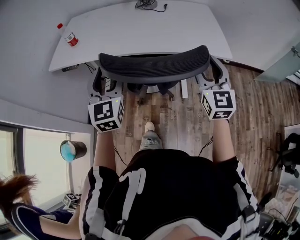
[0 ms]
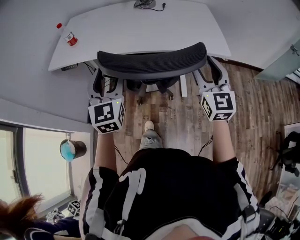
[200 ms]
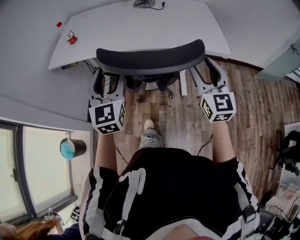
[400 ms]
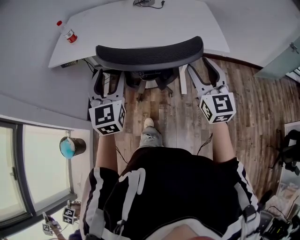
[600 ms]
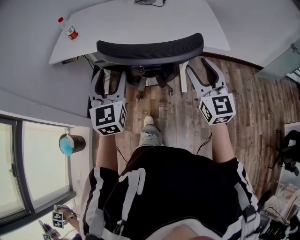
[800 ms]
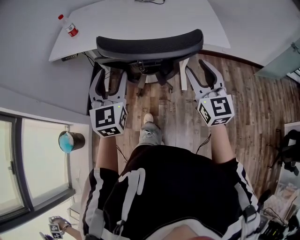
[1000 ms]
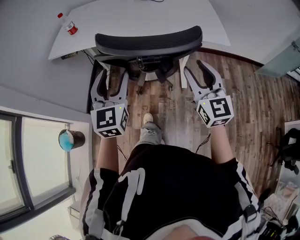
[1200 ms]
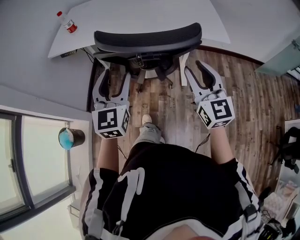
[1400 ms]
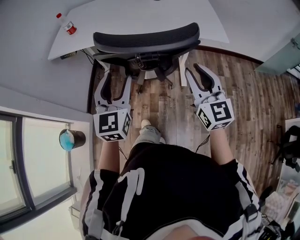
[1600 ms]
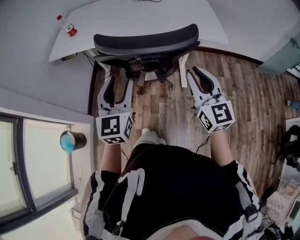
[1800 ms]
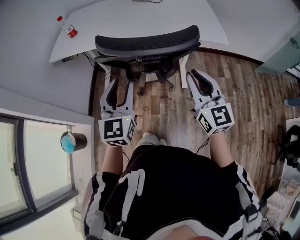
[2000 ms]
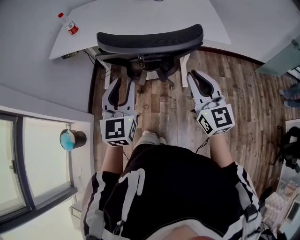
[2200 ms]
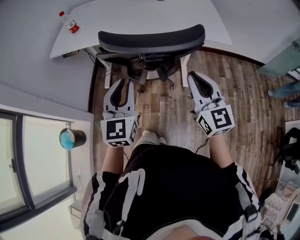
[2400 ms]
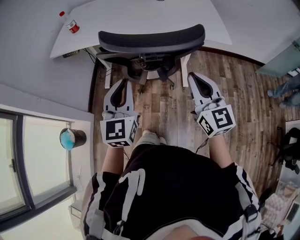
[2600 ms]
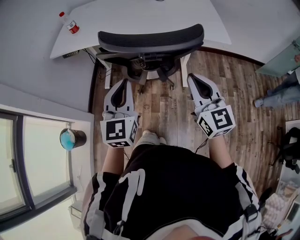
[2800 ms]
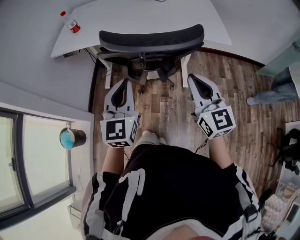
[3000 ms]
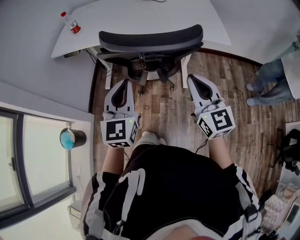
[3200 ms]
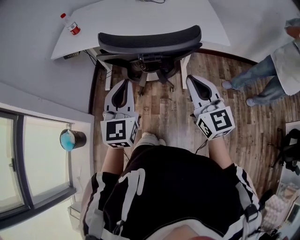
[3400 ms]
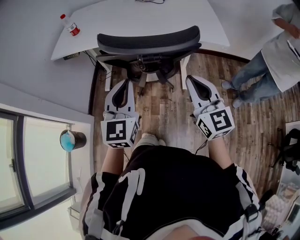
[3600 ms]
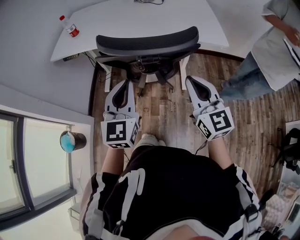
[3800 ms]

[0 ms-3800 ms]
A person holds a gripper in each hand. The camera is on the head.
0 ms to 1200 ms: Both grippers move backward, some 10 cm.
1200 ms to 2600 ms: The right gripper closes its fingers. The left gripper closes its fingers.
2600 ms to 3800 ms: The grippers move only a little.

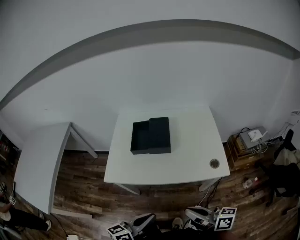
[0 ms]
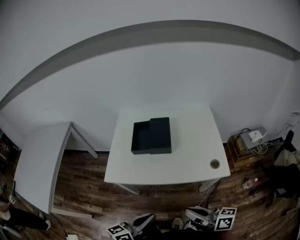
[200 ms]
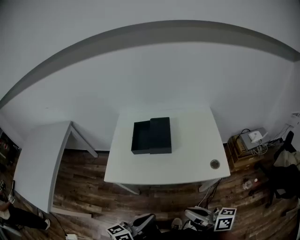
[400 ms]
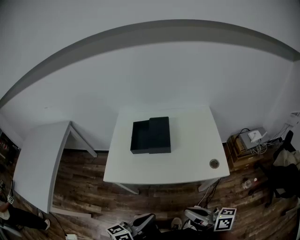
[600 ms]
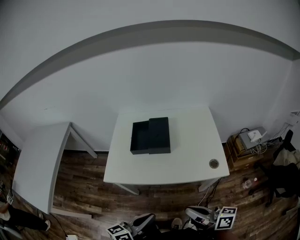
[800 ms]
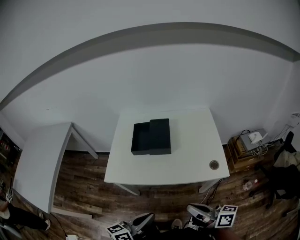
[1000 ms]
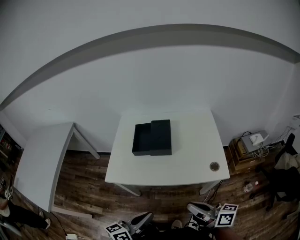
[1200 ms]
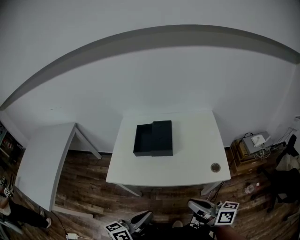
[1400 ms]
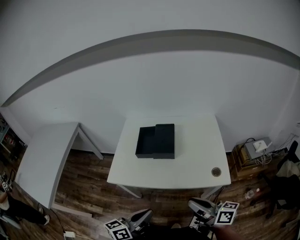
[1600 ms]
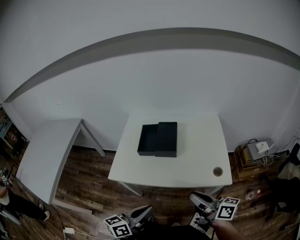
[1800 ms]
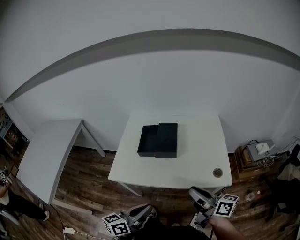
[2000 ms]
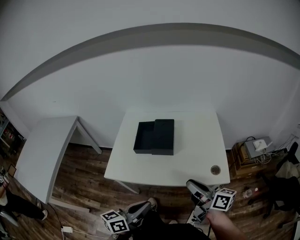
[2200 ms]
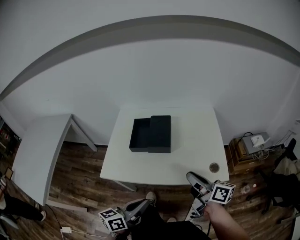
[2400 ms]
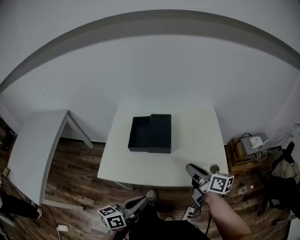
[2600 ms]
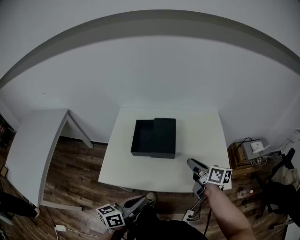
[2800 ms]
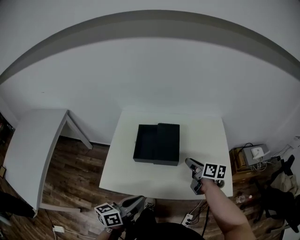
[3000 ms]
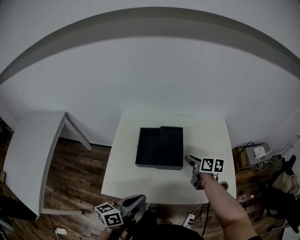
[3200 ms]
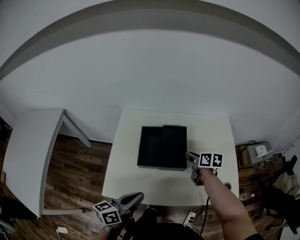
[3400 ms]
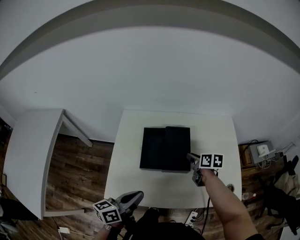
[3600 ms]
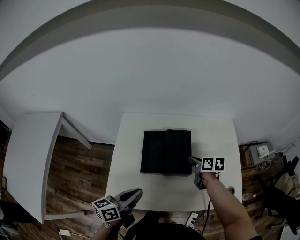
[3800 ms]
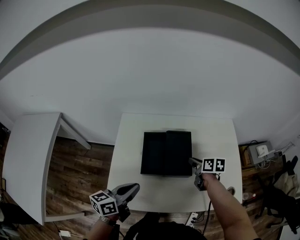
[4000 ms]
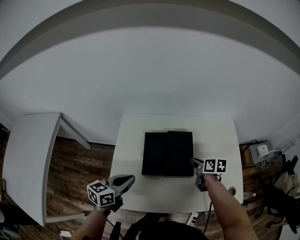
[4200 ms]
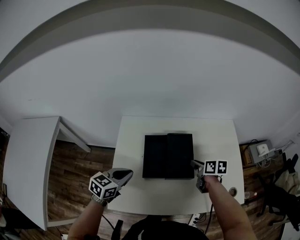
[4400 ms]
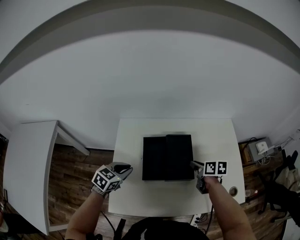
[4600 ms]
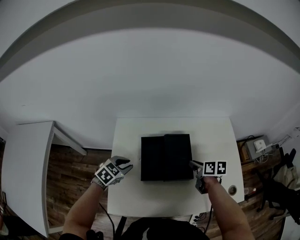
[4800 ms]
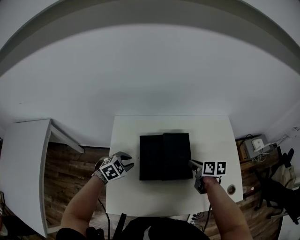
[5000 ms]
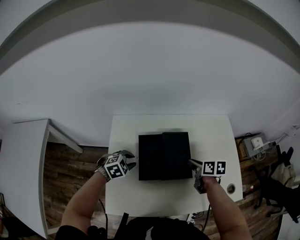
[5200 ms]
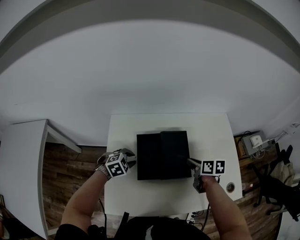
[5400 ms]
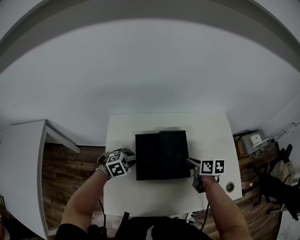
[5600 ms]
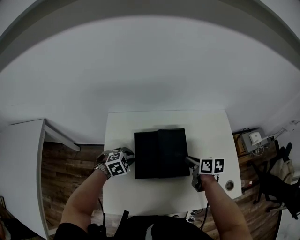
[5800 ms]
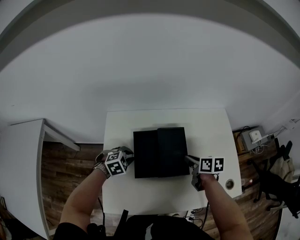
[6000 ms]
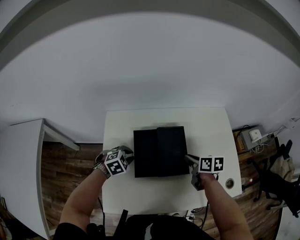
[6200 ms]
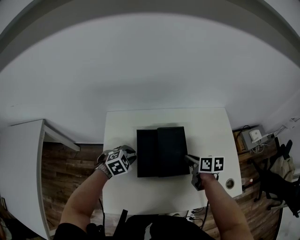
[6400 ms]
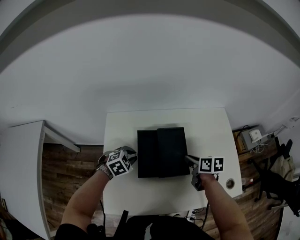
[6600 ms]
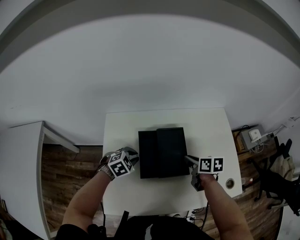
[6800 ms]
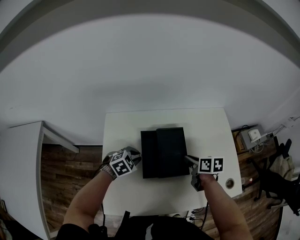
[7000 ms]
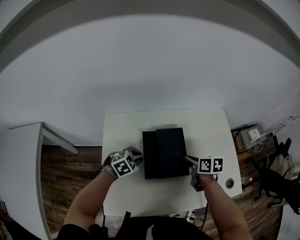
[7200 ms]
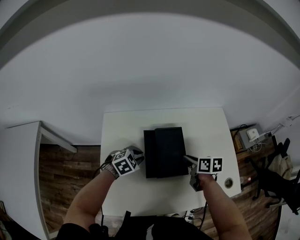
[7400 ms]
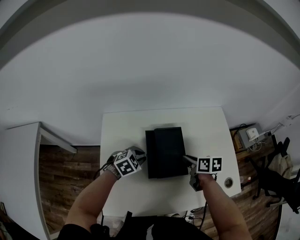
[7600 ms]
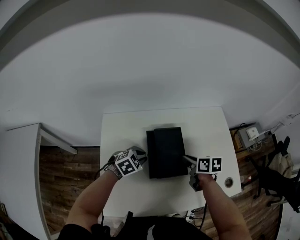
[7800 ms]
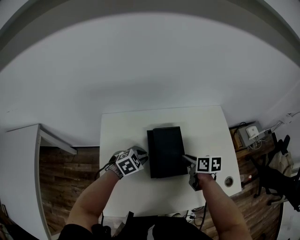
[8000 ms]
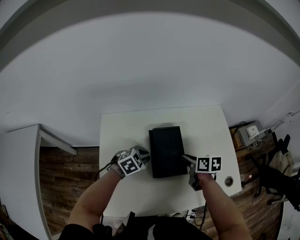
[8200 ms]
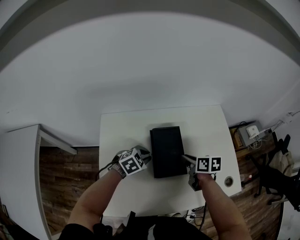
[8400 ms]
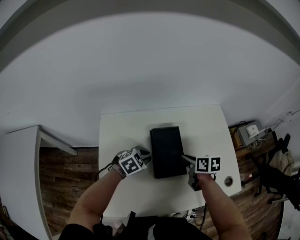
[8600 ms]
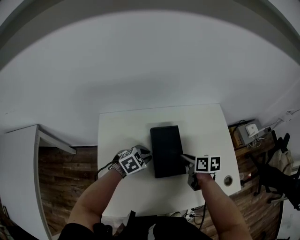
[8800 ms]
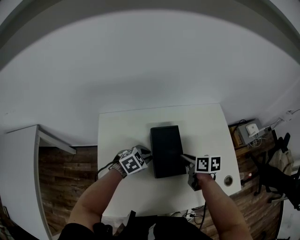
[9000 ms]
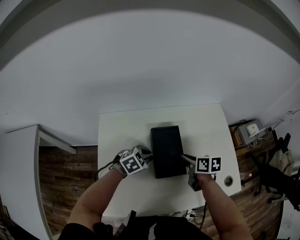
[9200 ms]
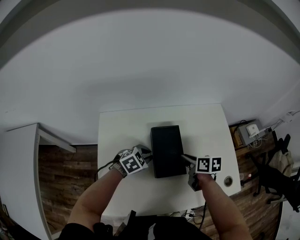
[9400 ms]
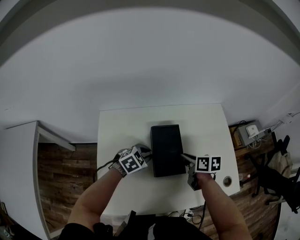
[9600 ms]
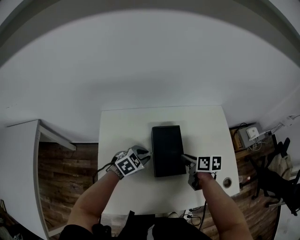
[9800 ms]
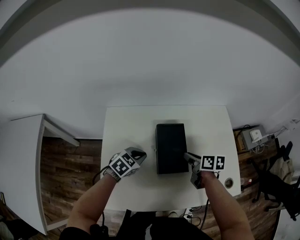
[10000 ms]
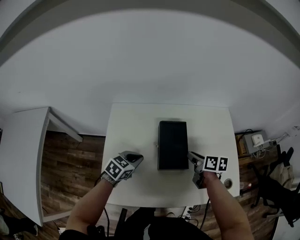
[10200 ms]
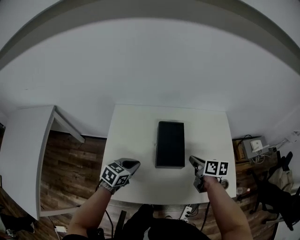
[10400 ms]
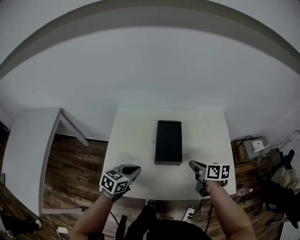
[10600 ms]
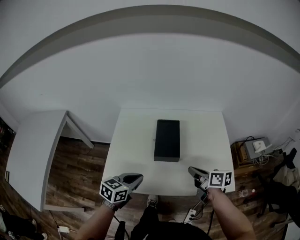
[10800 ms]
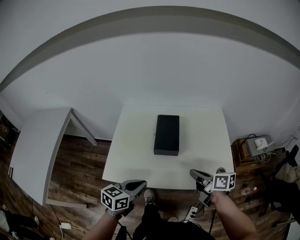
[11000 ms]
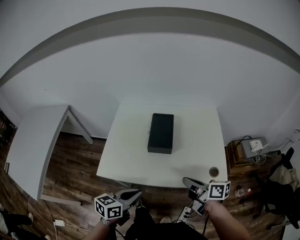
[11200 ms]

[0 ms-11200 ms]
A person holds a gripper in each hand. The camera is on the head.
0 ms to 1600 ms: The right gripper moves forward, roughly 5 cm.
1600 ms to 3200 ms: The right gripper goes approximately 35 cm forward and downward, and tips its fingers downward by roughly 30 degrees; the left gripper heads forward and to the left, covering some 20 cm.
3200 ms to 4800 ms: The right gripper moves roughly 5 cm; the left gripper is displaced forward, to the left and downward by about 30 cm, angles its fingers downward, by about 40 degrees, and opens its fingers.
4800 ms to 6400 ms: The left gripper is displaced to the right by approximately 5 cm, and changes its angle by some 20 degrees.
6400 ms to 8000 ms: The left gripper goes about 5 cm to the right.
8000 ms to 9600 ms: The grippers make only small movements.
9600 ms to 11200 ms: The grippers both shift backward and upward by some 35 cm. The left gripper rolls counterclockwise, seen from behind, by some 50 degrees. The right gripper tilts its fingers roughly 30 degrees upward, and closes.

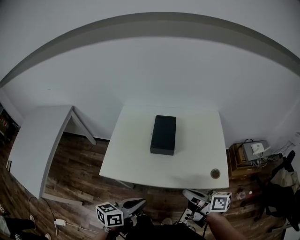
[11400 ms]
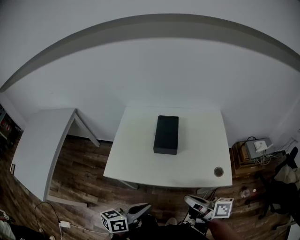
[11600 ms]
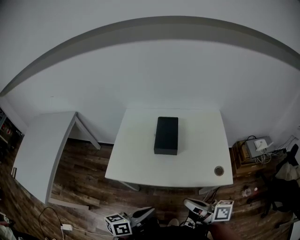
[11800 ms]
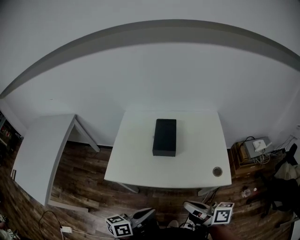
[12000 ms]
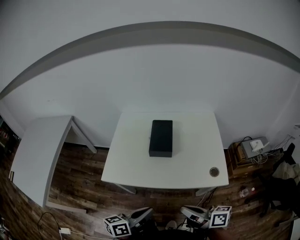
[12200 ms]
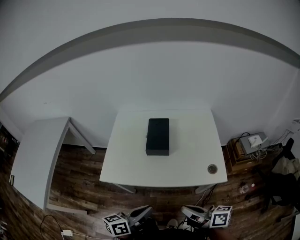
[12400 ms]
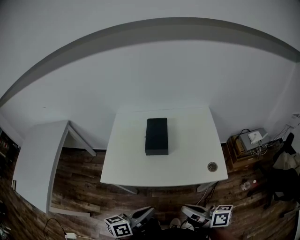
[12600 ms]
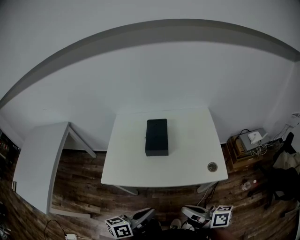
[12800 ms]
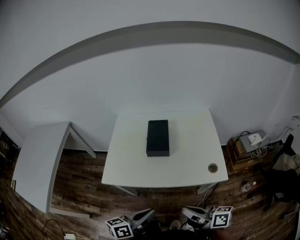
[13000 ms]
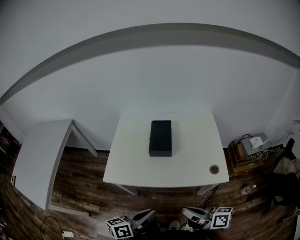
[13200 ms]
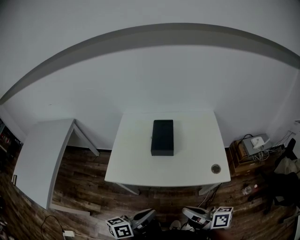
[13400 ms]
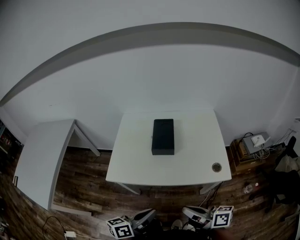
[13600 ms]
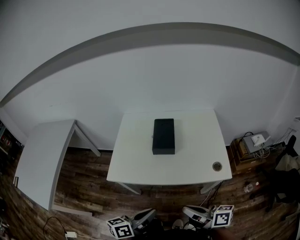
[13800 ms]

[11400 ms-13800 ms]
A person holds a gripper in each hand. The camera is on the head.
11400 ms to 12600 ms: The right gripper is displaced backward by approximately 10 cm, while the left gripper shifts by some 5 cm.
12600 ms to 13800 ms: The grippers make only small movements.

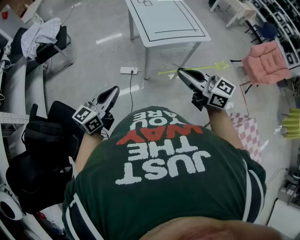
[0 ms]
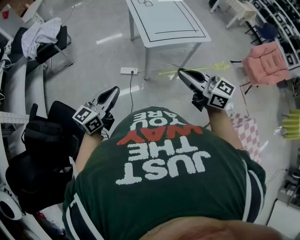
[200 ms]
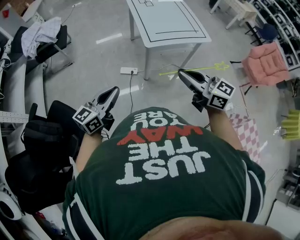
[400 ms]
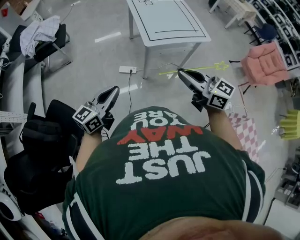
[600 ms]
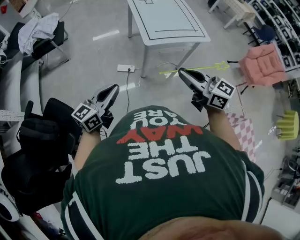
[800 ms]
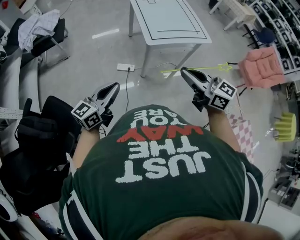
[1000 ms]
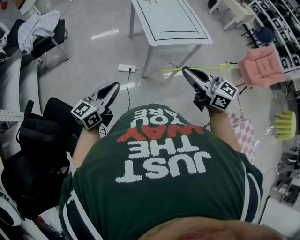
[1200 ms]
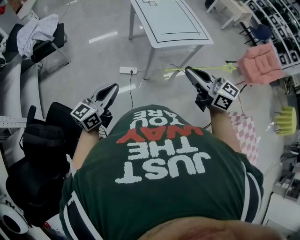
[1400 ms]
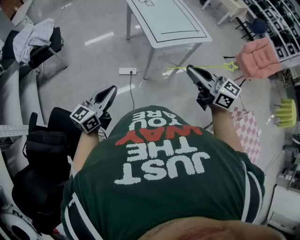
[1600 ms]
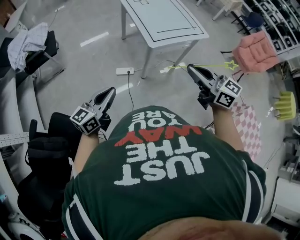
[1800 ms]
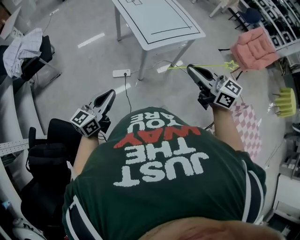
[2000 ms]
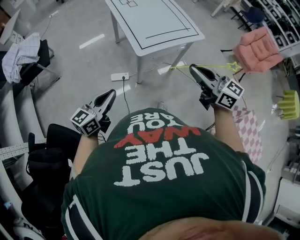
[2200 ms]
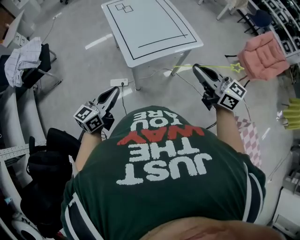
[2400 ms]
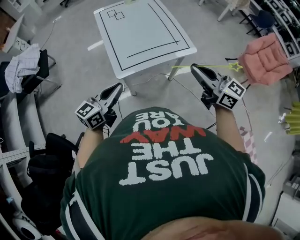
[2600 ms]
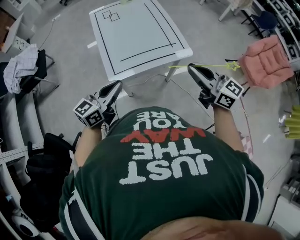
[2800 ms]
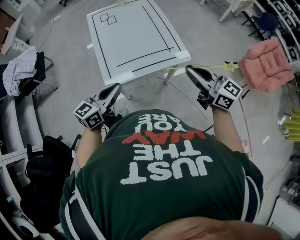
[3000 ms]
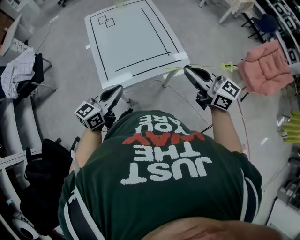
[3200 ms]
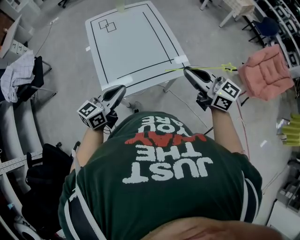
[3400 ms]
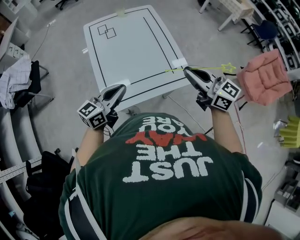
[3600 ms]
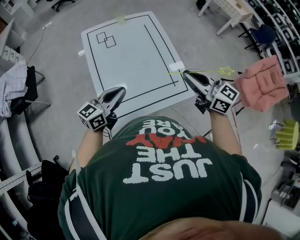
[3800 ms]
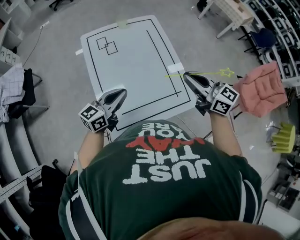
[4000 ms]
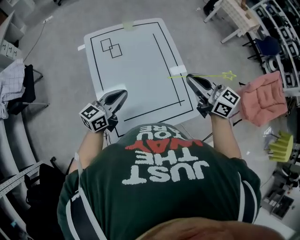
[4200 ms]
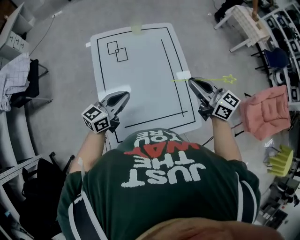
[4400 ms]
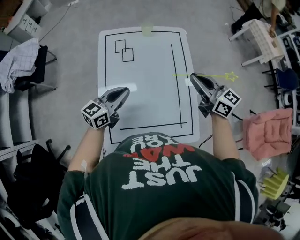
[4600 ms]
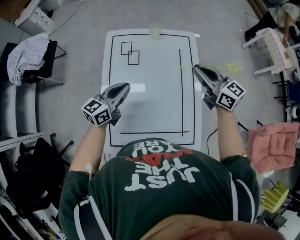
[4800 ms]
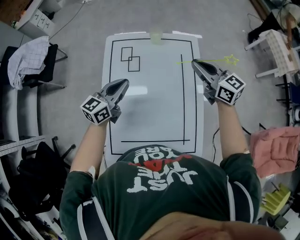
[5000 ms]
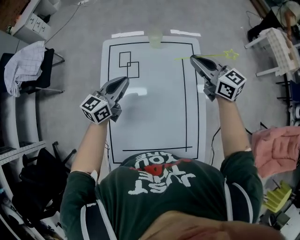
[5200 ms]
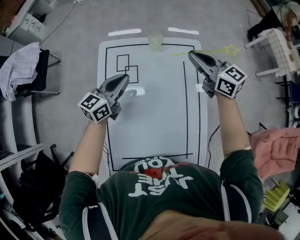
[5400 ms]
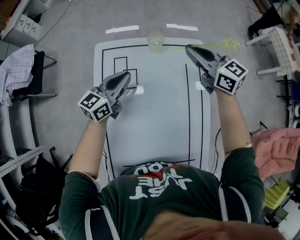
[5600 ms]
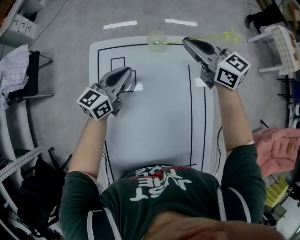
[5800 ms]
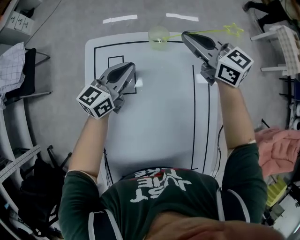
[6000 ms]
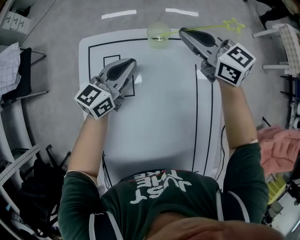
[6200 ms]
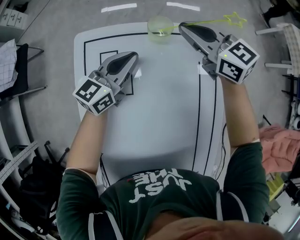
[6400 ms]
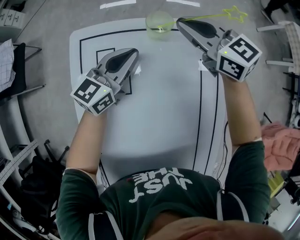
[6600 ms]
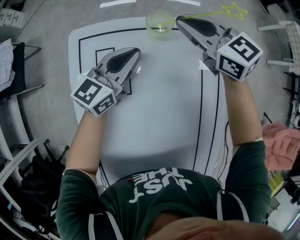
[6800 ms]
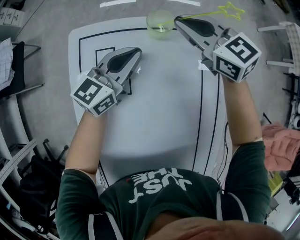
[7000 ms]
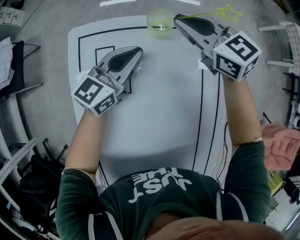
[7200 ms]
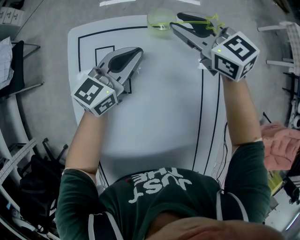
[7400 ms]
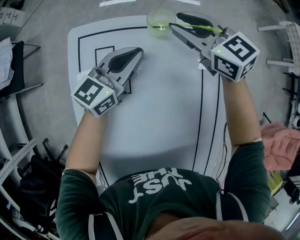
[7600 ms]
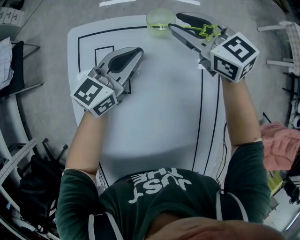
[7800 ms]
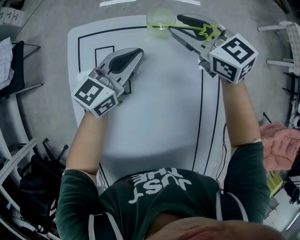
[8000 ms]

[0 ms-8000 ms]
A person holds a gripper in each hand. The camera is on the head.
0 ms to 1600 ms: The left gripper travels to the left and forward by about 15 cm, while the right gripper shifts about 10 cm to the left.
1600 ms to 3200 ms: The two grippers travel together, to the right and forward, about 60 cm.
3200 ms to 4800 ms: Both grippers are carried forward, about 50 cm.
4800 ms to 6400 ms: Both grippers move forward and downward, approximately 40 cm.
6400 ms to 8000 ms: The right gripper opens up.
